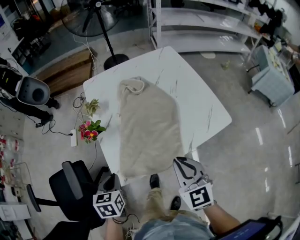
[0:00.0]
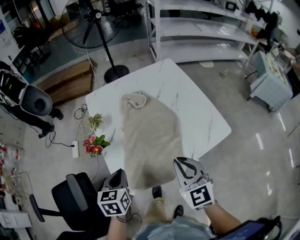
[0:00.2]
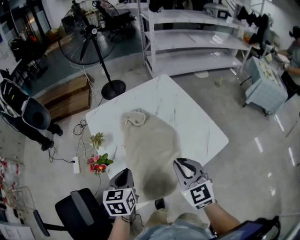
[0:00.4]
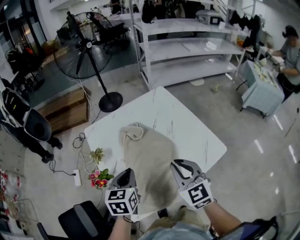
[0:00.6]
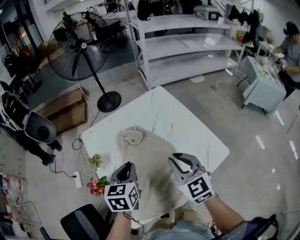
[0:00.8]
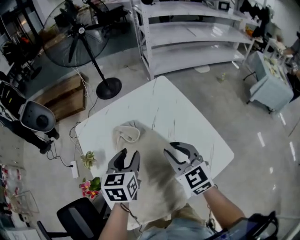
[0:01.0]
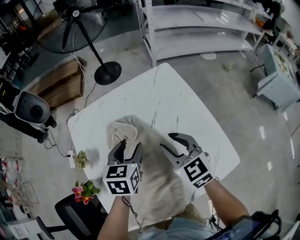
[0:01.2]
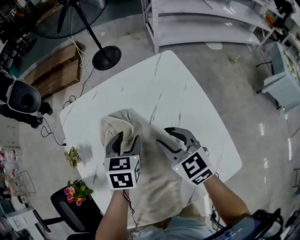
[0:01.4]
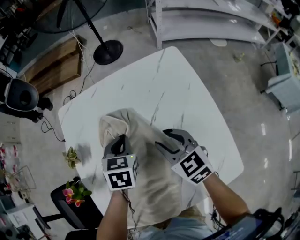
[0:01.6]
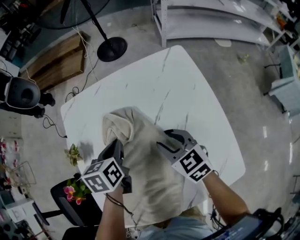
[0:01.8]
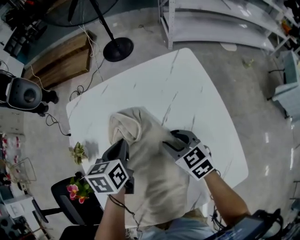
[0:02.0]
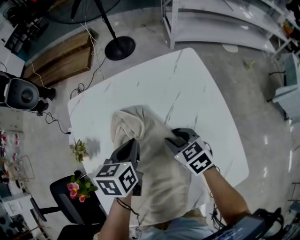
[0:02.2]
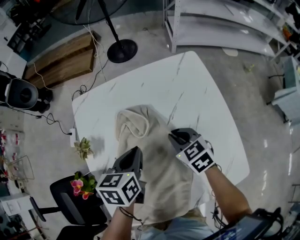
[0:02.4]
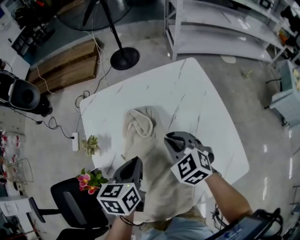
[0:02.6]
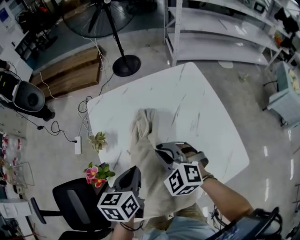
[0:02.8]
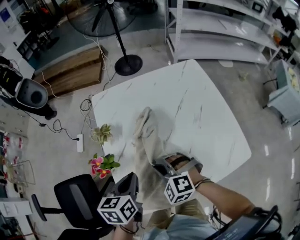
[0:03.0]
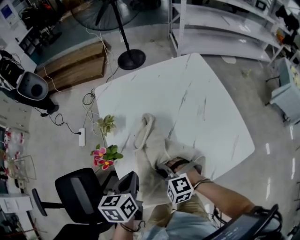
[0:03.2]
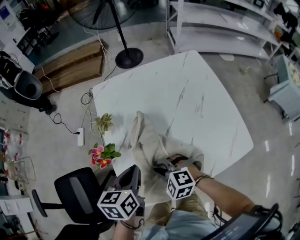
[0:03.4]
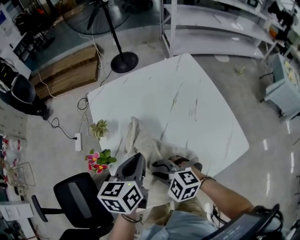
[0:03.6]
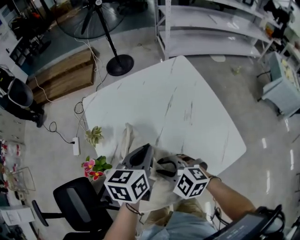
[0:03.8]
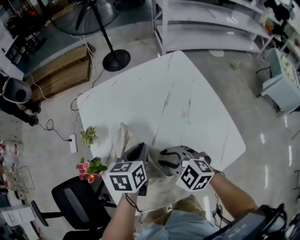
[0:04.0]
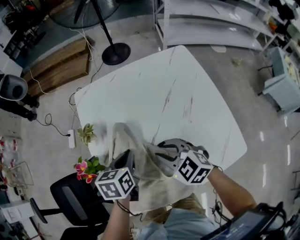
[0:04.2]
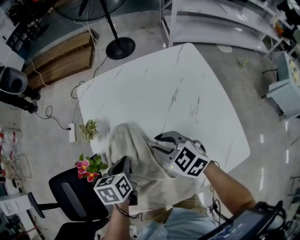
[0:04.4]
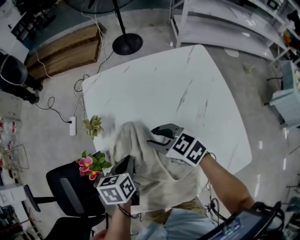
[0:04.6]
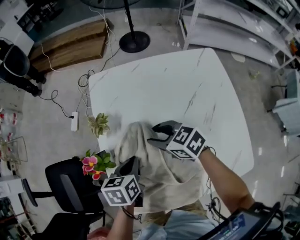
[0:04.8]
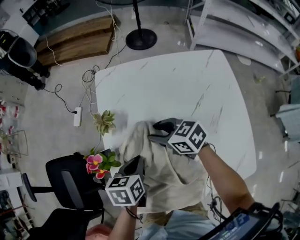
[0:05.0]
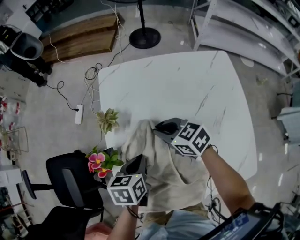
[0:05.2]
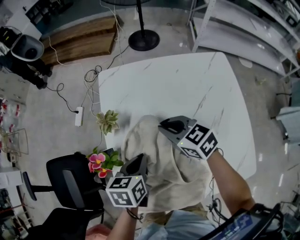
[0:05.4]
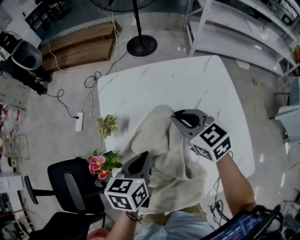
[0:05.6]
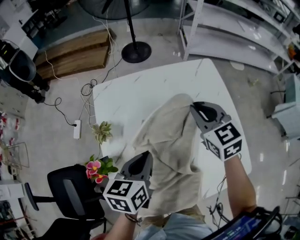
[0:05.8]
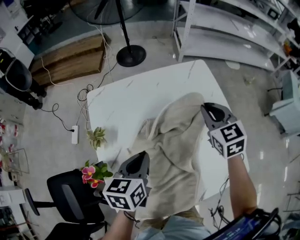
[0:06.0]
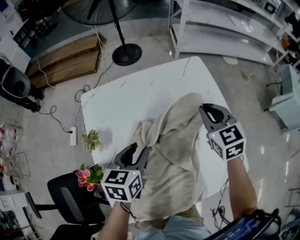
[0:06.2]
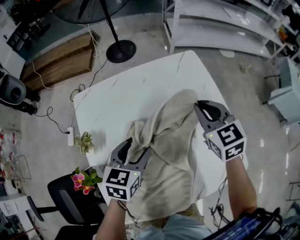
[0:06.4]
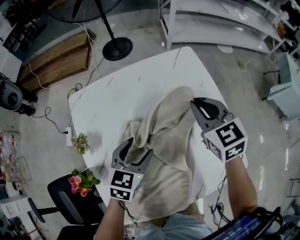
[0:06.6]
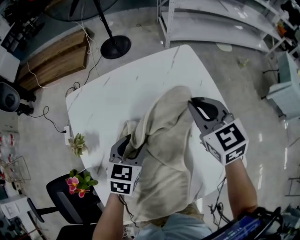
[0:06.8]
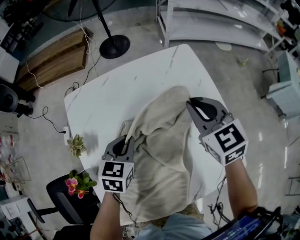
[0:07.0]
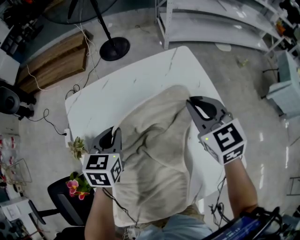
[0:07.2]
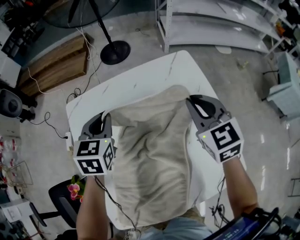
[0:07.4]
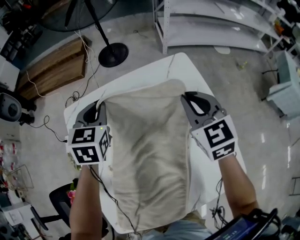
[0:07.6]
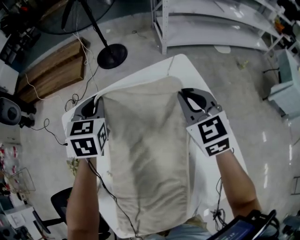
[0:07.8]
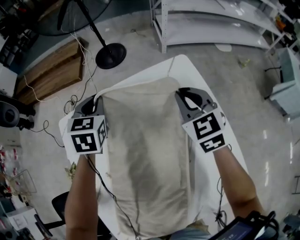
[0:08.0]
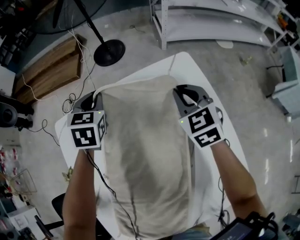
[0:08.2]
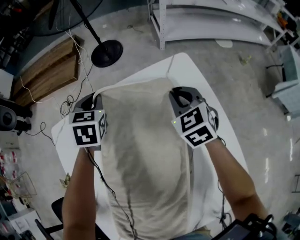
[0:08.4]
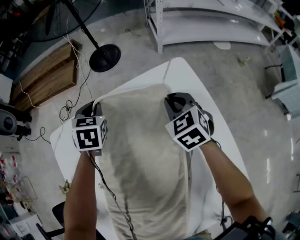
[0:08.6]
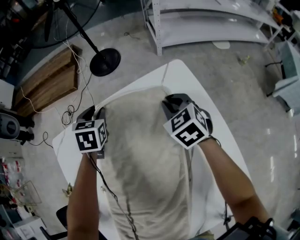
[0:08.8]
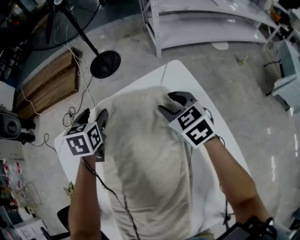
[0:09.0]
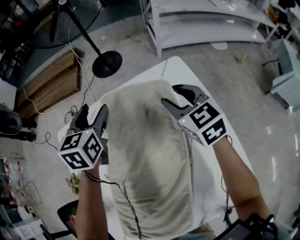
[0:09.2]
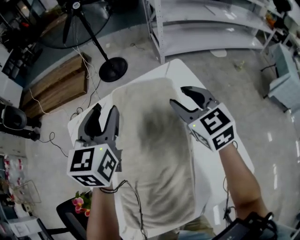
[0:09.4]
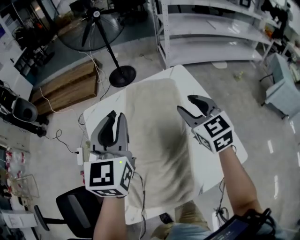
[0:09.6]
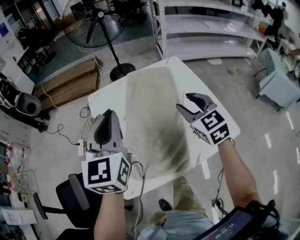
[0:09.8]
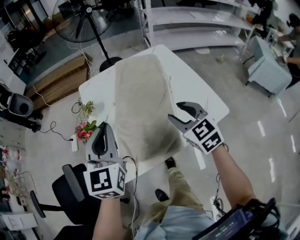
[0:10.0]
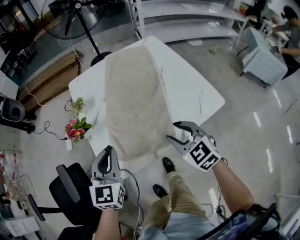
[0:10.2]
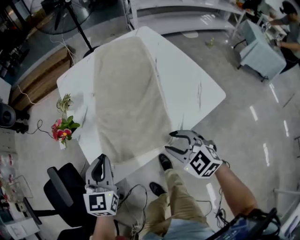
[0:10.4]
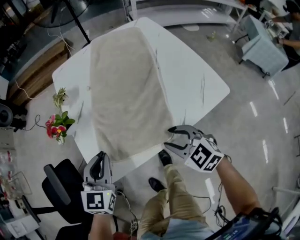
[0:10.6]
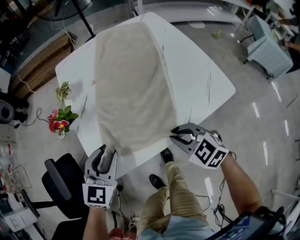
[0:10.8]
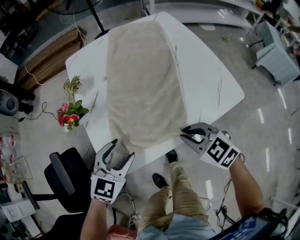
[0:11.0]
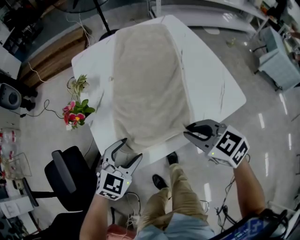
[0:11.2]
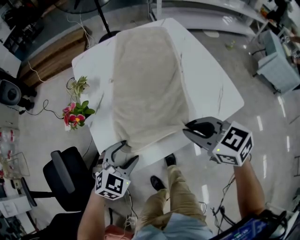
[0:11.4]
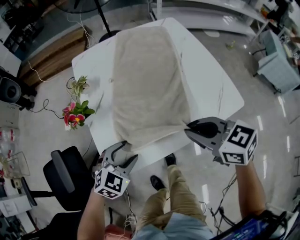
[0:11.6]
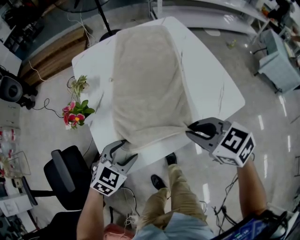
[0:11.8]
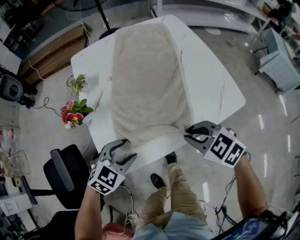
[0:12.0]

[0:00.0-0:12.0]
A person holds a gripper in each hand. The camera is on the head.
0:00.0 to 0:01.6: The left gripper goes roughly 40 cm forward and to the right, and opens and closes again. Meanwhile the right gripper heads forward, covering some 35 cm, turns by approximately 20 degrees, and opens.
0:01.6 to 0:03.0: The right gripper is displaced to the left and backward by some 25 cm, twists approximately 50 degrees counterclockwise, seen from behind, and closes up. Meanwhile the left gripper goes approximately 25 cm backward and to the left, and swivels some 30 degrees.
0:03.0 to 0:04.4: The left gripper moves downward and forward, roughly 10 cm, and goes to the right and returns, approximately 15 cm each way; the right gripper heads to the right and forward, covering some 10 cm, and swivels about 40 degrees.
0:04.4 to 0:06.0: The right gripper moves about 25 cm, and rotates approximately 40 degrees; the left gripper moves about 10 cm.
0:06.0 to 0:07.6: The right gripper is displaced forward by approximately 5 cm. Meanwhile the left gripper moves forward, some 25 cm, rotates some 30 degrees, and opens, then closes once more.
0:07.6 to 0:09.0: The right gripper heads downward and forward, covering approximately 20 cm, and opens up. The left gripper goes approximately 15 cm forward and downward, and opens up.
0:09.0 to 0:10.4: The pair of grippers is taken backward, some 60 cm. The left gripper swivels some 20 degrees, and closes up.
0:10.4 to 0:12.0: The left gripper goes approximately 10 cm downward, swivels about 40 degrees, and opens its fingers; the right gripper moves approximately 10 cm upward and comes back, rotates roughly 20 degrees, and closes.

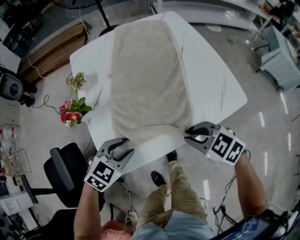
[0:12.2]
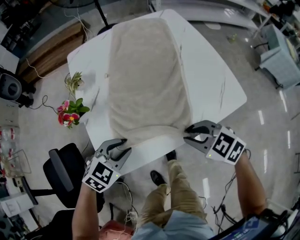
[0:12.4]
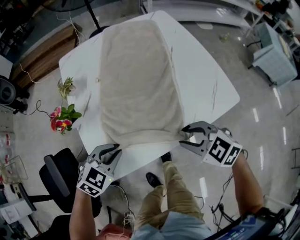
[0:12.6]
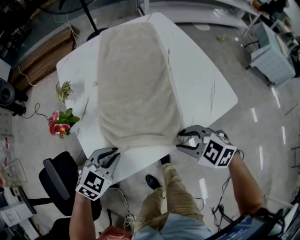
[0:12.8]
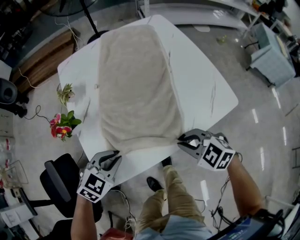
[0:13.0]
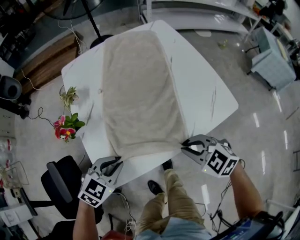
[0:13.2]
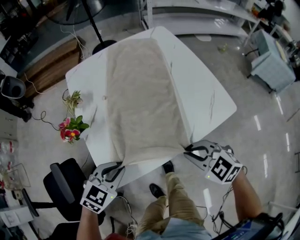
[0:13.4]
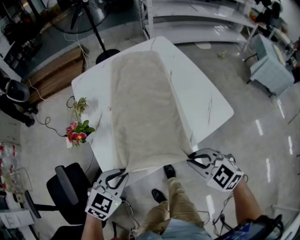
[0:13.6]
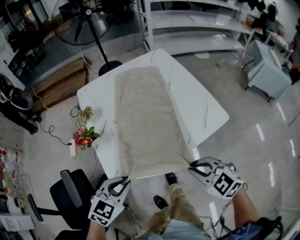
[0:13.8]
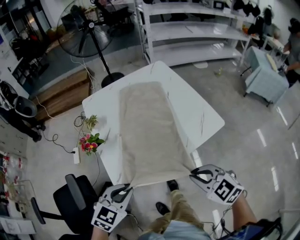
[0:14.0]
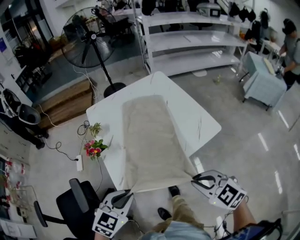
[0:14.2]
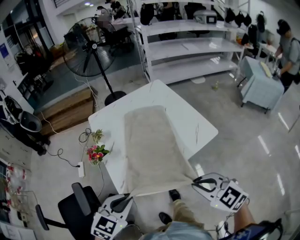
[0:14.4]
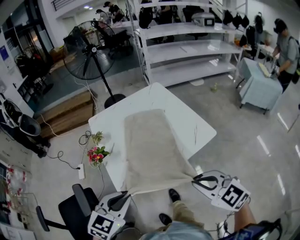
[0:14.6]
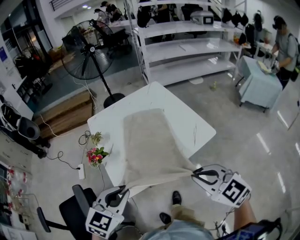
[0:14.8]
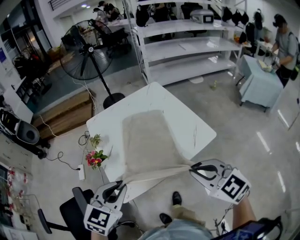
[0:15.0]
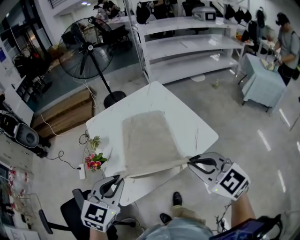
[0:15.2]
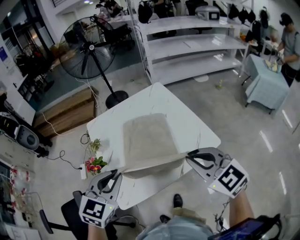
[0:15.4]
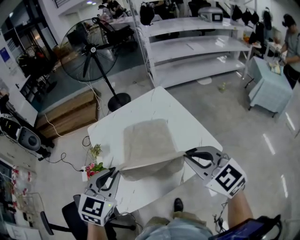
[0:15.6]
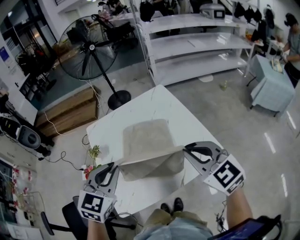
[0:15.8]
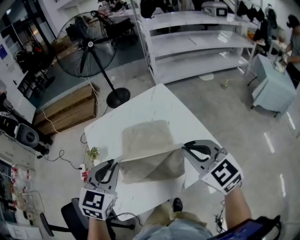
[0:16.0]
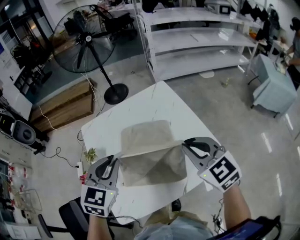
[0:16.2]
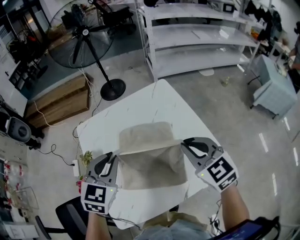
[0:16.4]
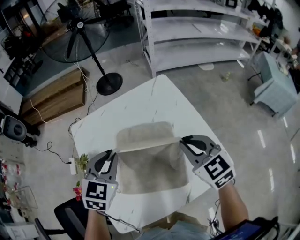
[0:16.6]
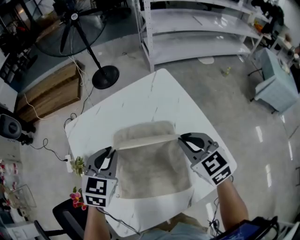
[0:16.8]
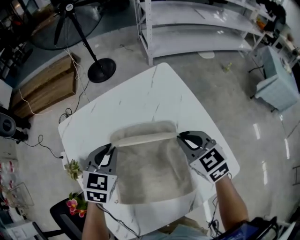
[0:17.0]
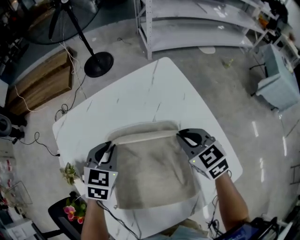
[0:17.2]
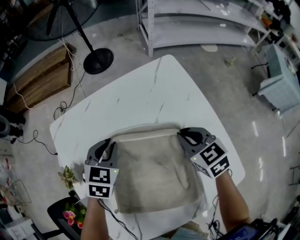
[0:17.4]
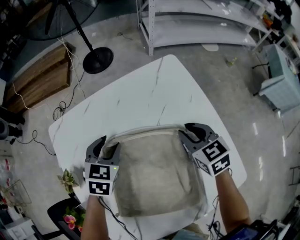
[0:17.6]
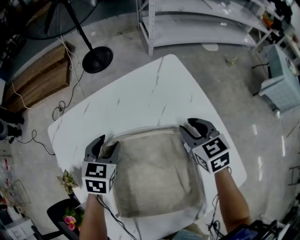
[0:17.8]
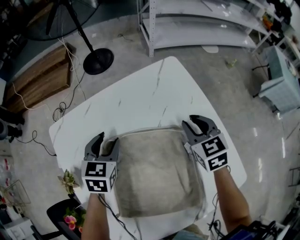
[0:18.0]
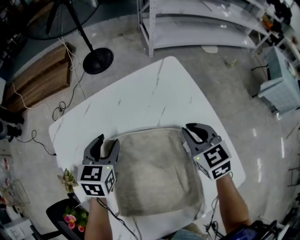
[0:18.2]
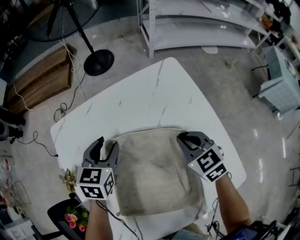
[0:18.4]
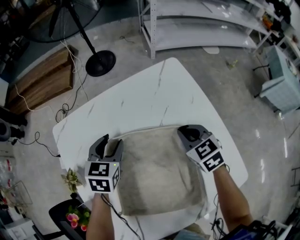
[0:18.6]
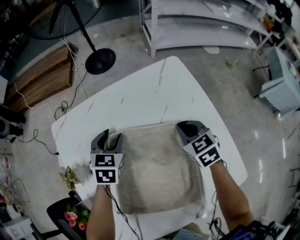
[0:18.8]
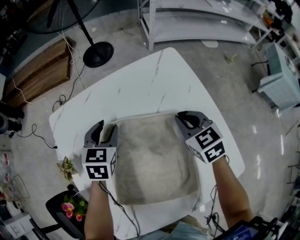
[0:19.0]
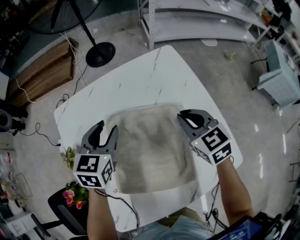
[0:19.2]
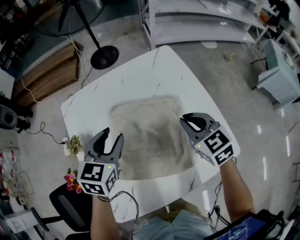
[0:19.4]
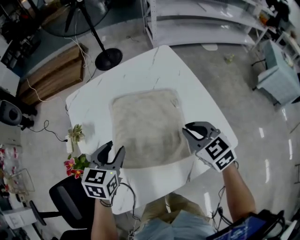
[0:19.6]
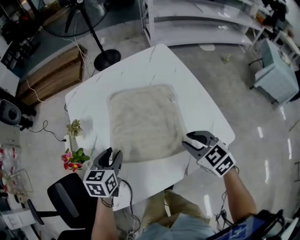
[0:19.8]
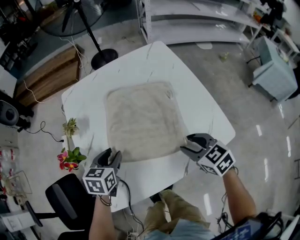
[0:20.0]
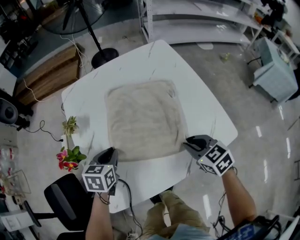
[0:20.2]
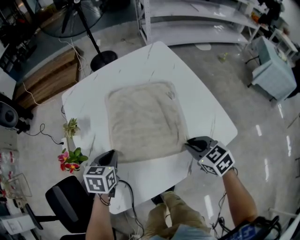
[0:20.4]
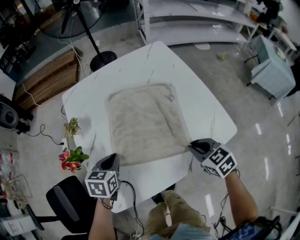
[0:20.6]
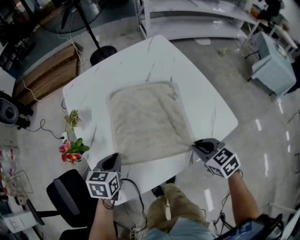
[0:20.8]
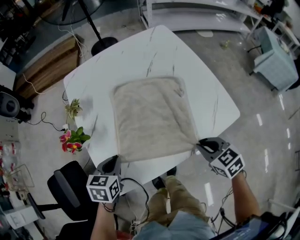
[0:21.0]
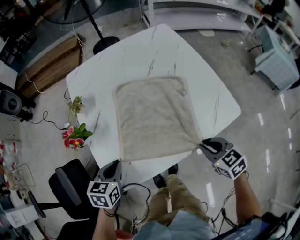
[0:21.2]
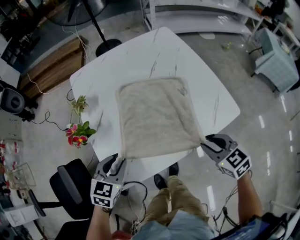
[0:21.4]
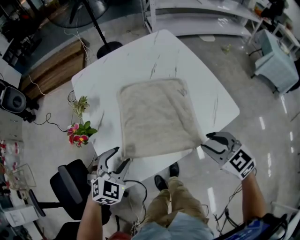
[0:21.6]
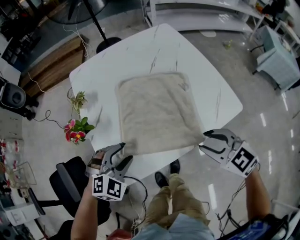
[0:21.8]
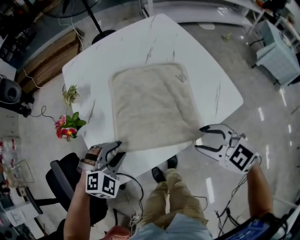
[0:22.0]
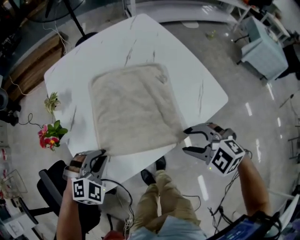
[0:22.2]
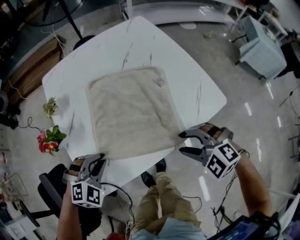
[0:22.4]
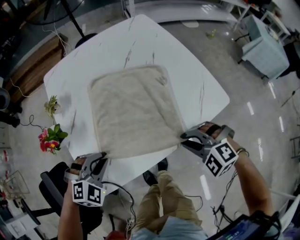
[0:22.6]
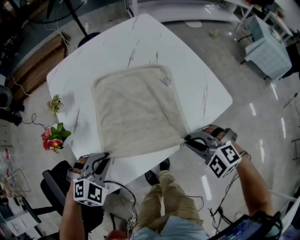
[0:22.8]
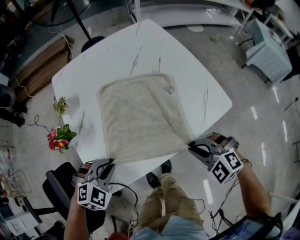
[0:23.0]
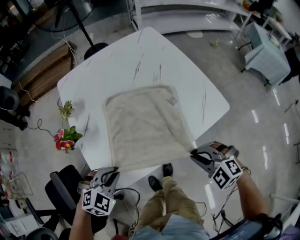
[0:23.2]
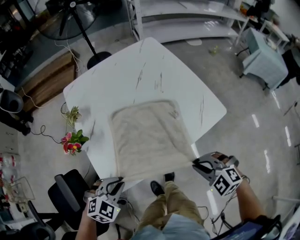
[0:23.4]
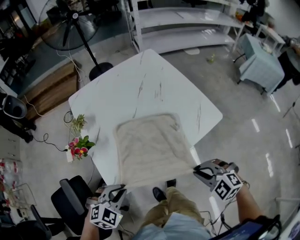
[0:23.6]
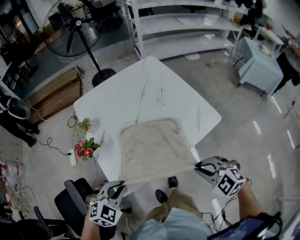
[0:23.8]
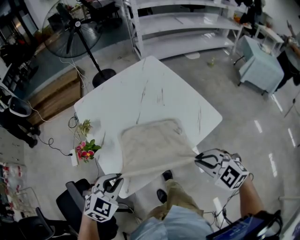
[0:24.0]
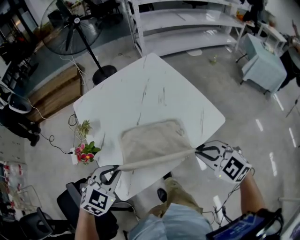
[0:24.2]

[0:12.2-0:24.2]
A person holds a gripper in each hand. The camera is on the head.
0:12.2 to 0:13.8: The left gripper heads upward and backward, covering about 10 cm, and closes up; the right gripper travels backward and upward by approximately 10 cm, and opens and closes again.
0:13.8 to 0:15.2: The grippers both shift upward by about 20 cm. The right gripper rotates approximately 20 degrees.
0:15.2 to 0:16.6: The two grippers go some 30 cm forward.
0:16.6 to 0:18.2: Both grippers move downward and forward, some 20 cm. The left gripper swivels about 20 degrees, and opens its fingers.
0:18.2 to 0:19.8: Both grippers travel together backward, roughly 25 cm.
0:19.8 to 0:21.2: The left gripper heads backward and to the left, covering some 15 cm, and closes its fingers. The right gripper moves backward, some 15 cm.
0:21.2 to 0:22.6: The right gripper rolls counterclockwise, seen from behind, by approximately 50 degrees, and opens and closes again. The left gripper twists about 70 degrees clockwise, seen from behind, and opens, then closes again.
0:22.6 to 0:24.2: The grippers both shift upward by roughly 15 cm. The right gripper rotates about 30 degrees; the left gripper changes its angle by some 20 degrees.
